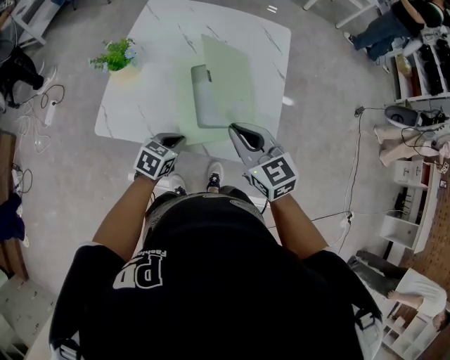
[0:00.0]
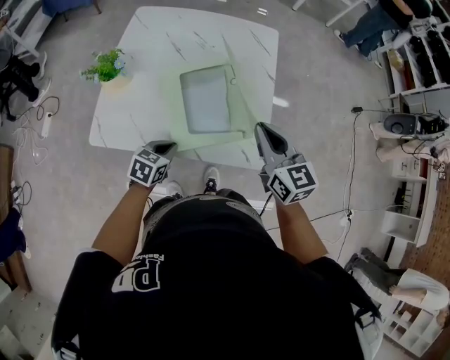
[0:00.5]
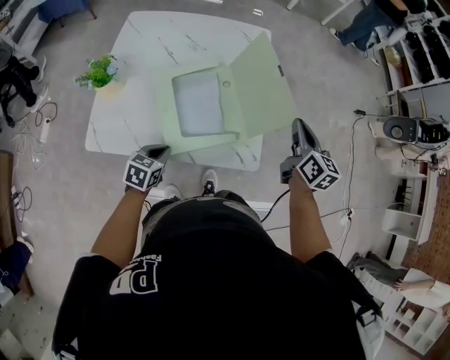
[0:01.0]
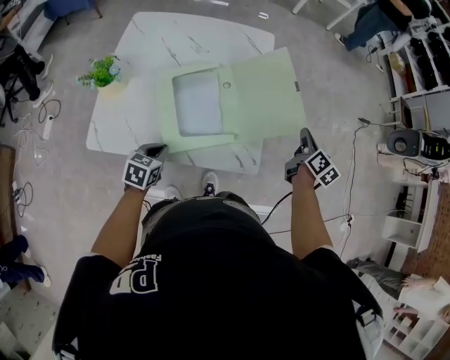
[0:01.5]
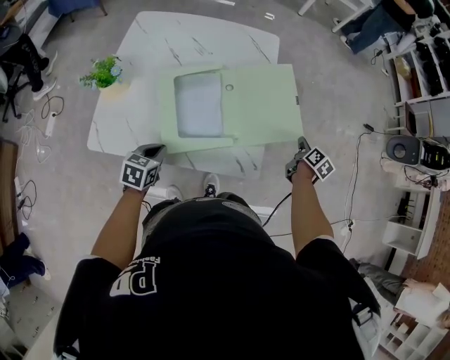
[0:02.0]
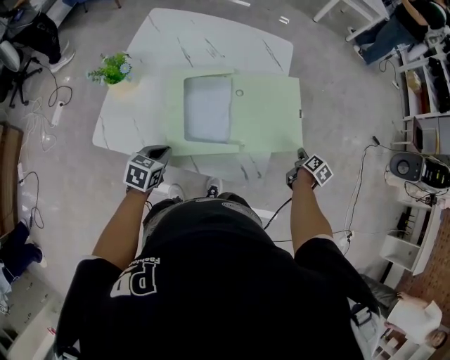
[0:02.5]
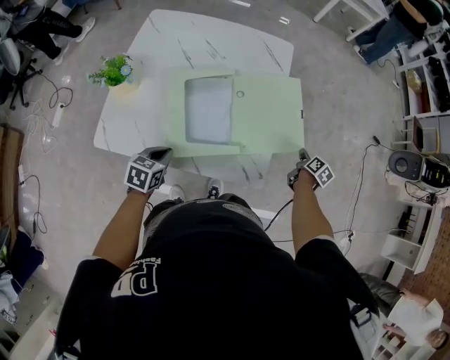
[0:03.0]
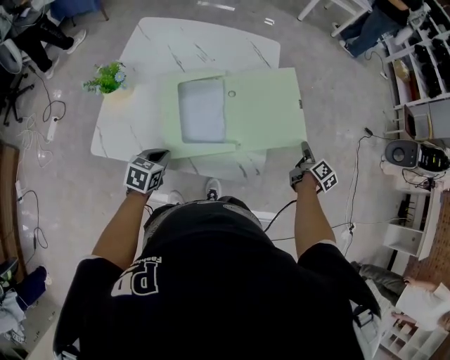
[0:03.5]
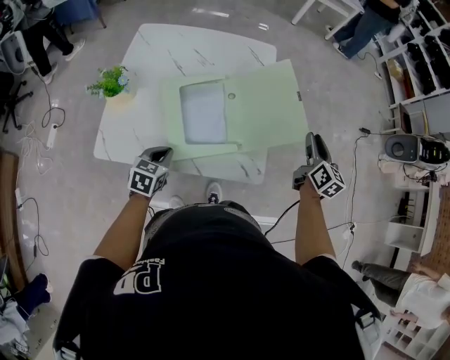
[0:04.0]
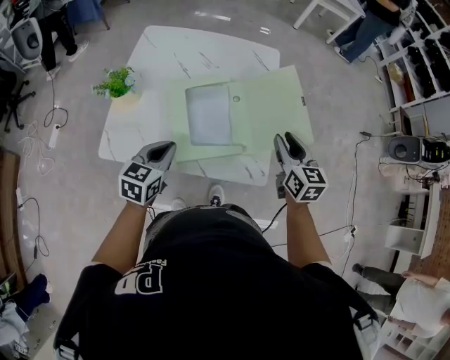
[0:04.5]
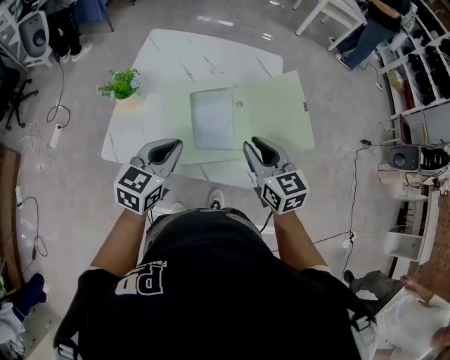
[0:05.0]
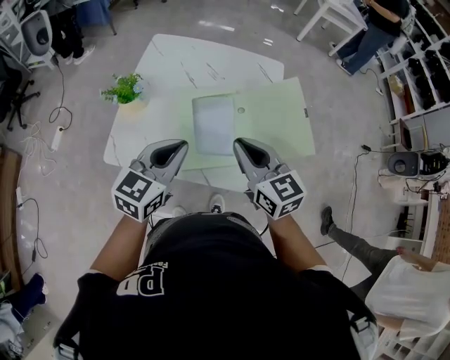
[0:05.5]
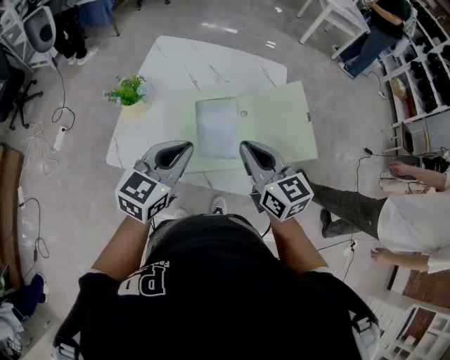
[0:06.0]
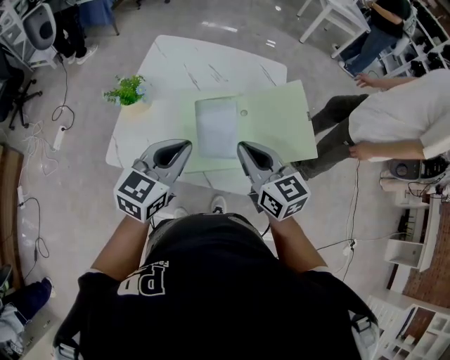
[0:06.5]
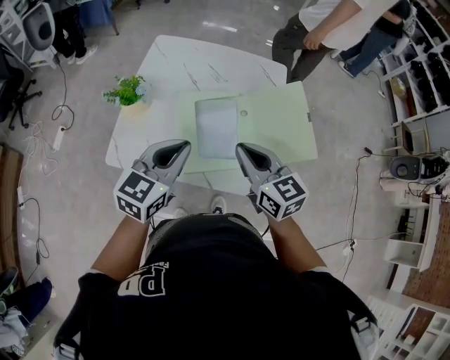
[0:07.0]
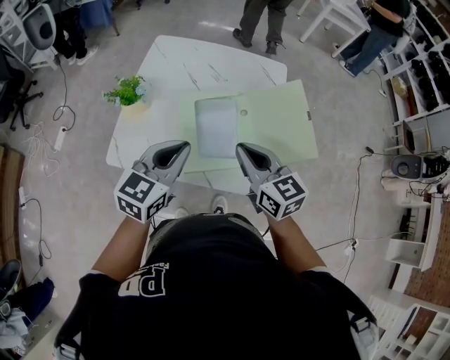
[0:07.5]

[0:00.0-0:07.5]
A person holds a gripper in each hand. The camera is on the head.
0:00.0 to 0:02.0: The right gripper is displaced to the right, downward and forward by about 40 cm, and swivels some 70 degrees.
0:02.0 to 0:04.0: The right gripper heads upward, covering approximately 15 cm, turns by roughly 30 degrees, and opens its fingers.
0:04.0 to 0:05.5: The right gripper goes roughly 30 cm to the left, swivels approximately 40 degrees, and closes; the left gripper travels upward by about 20 cm, and swivels about 30 degrees.
0:05.5 to 0:07.5: The grippers make only small movements.

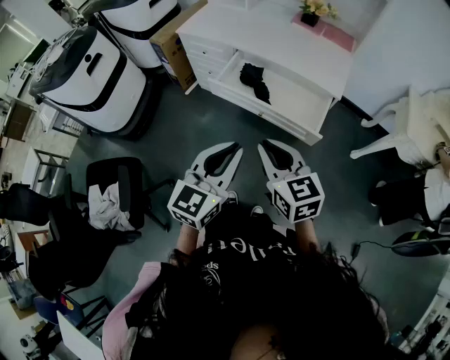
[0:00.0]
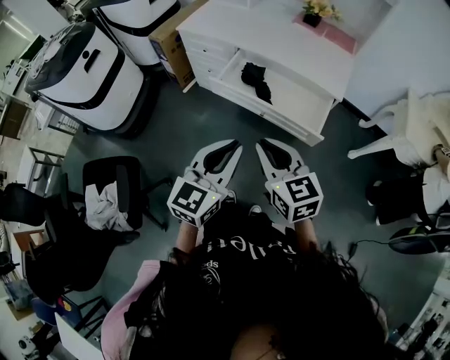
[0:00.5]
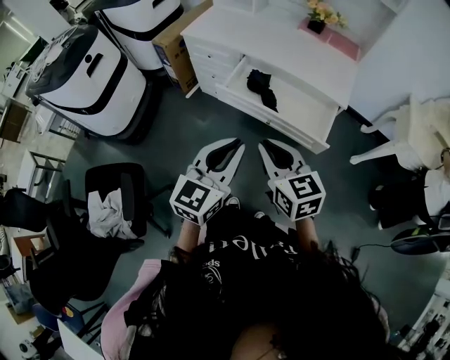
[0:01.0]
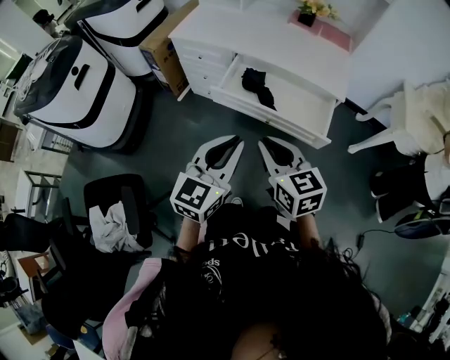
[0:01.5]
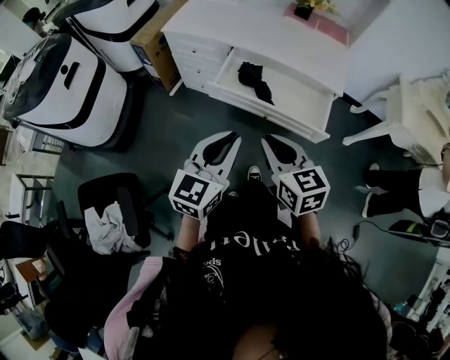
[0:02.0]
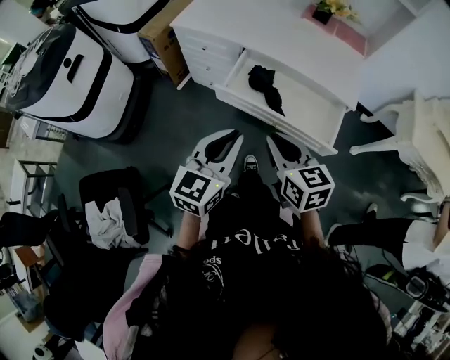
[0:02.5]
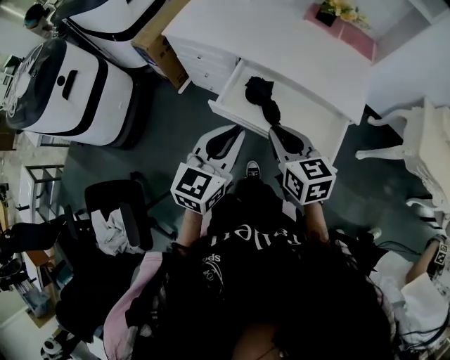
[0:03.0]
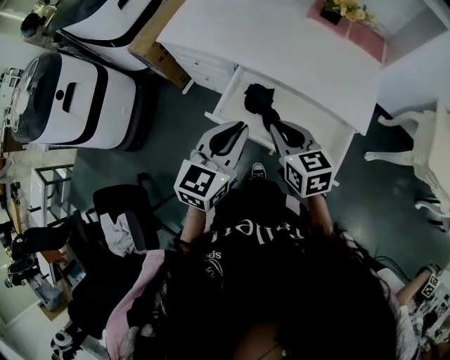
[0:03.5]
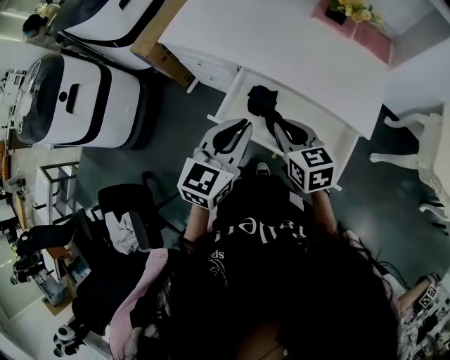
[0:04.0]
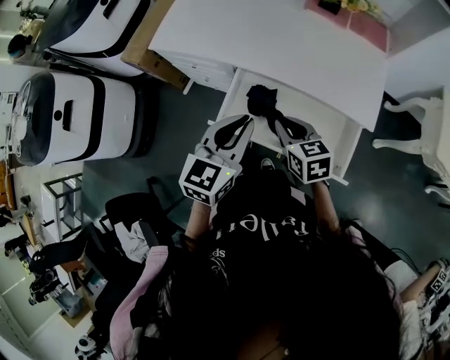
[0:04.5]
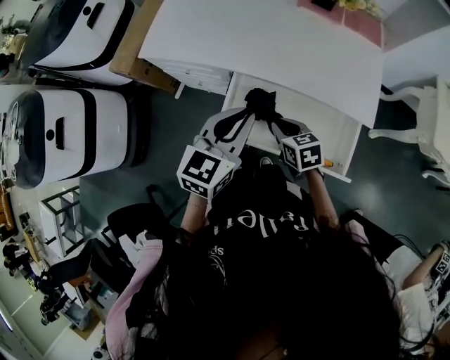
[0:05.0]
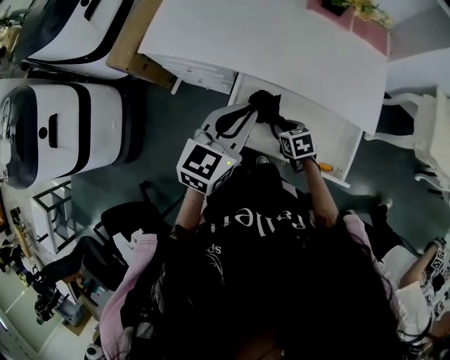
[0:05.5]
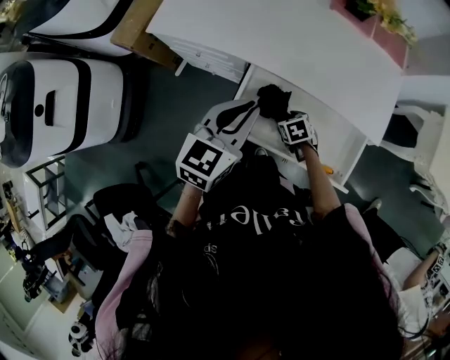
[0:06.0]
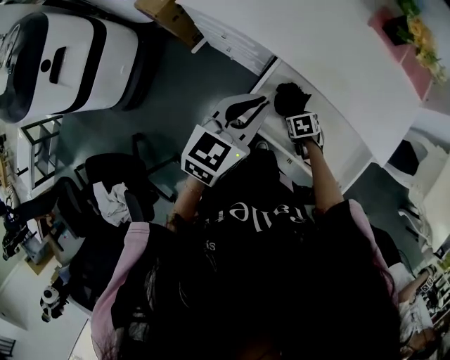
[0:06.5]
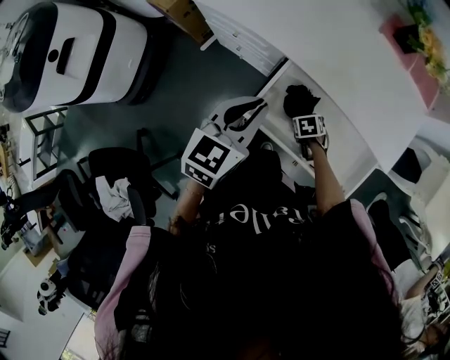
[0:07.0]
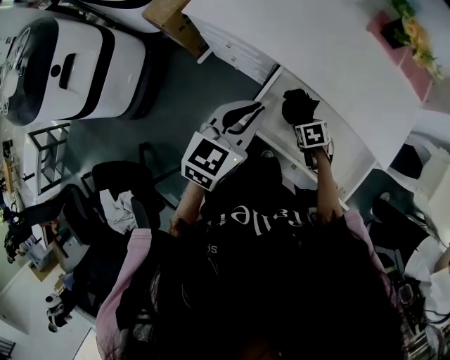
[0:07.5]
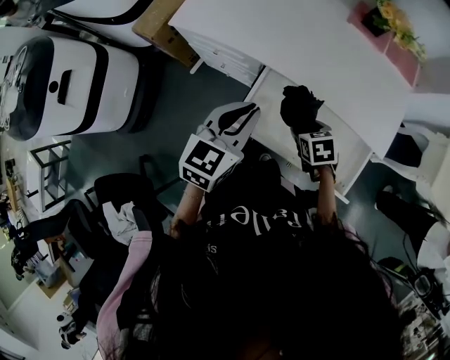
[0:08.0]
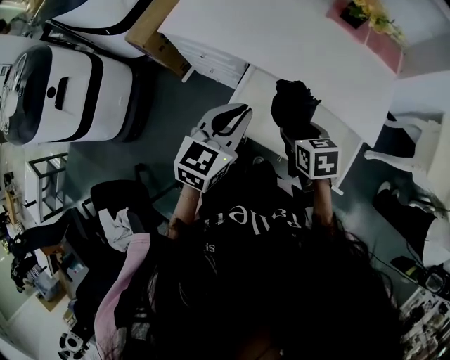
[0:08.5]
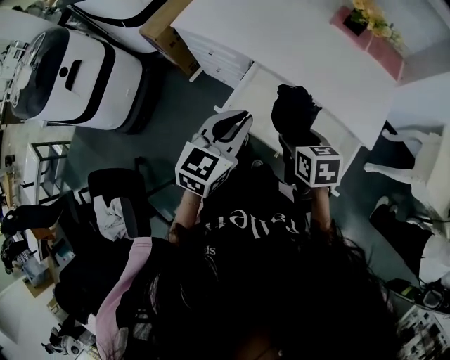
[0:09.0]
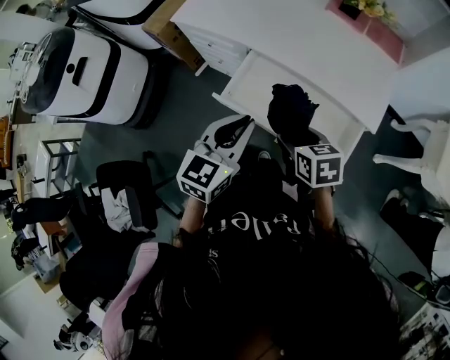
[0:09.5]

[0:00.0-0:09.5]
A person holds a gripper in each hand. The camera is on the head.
0:00.0 to 0:02.0: The two grippers go about 15 cm to the left and forward.
0:02.0 to 0:04.0: The grippers both shift forward by some 30 cm.
0:04.0 to 0:05.5: The left gripper travels forward by approximately 10 cm. The right gripper travels downward by some 20 cm, and changes its angle by about 30 degrees.
0:05.5 to 0:07.5: The right gripper is displaced downward by some 5 cm, rotates roughly 20 degrees, and opens its fingers; the left gripper changes place by some 10 cm.
0:07.5 to 0:09.5: The left gripper changes place by some 20 cm, while the right gripper travels upward by some 25 cm, and angles its fingers upward, by roughly 30 degrees.

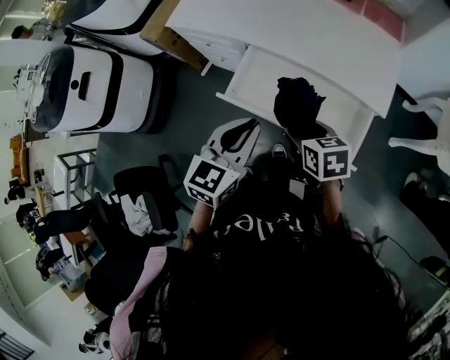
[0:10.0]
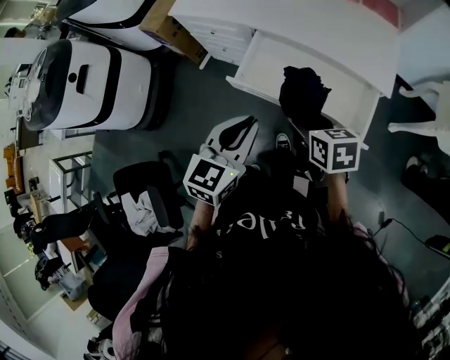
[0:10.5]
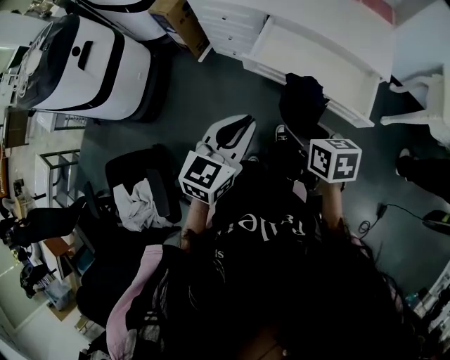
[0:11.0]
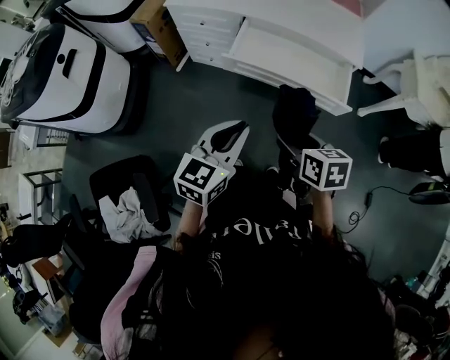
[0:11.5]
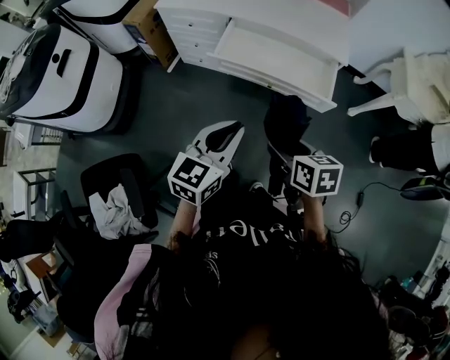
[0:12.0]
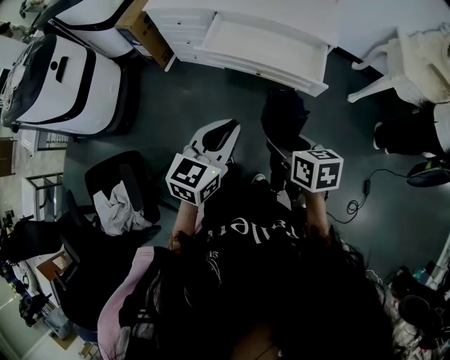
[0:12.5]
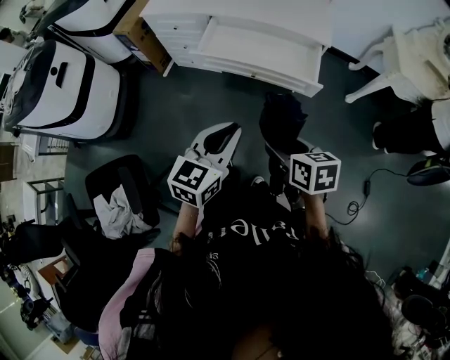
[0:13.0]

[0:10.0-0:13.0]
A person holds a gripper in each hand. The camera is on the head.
0:10.0 to 0:11.5: The grippers both shift backward and to the left by some 30 cm.
0:11.5 to 0:13.0: The grippers both shift to the right and backward by about 15 cm.

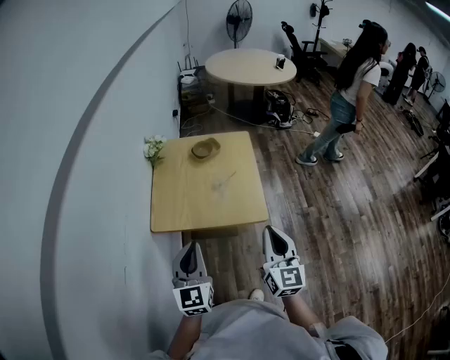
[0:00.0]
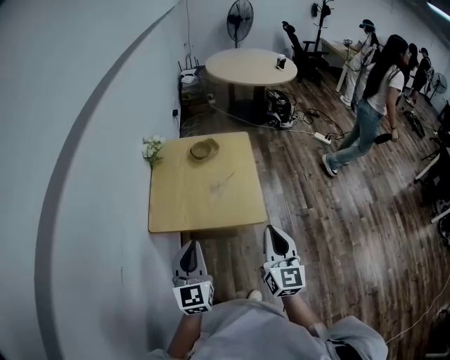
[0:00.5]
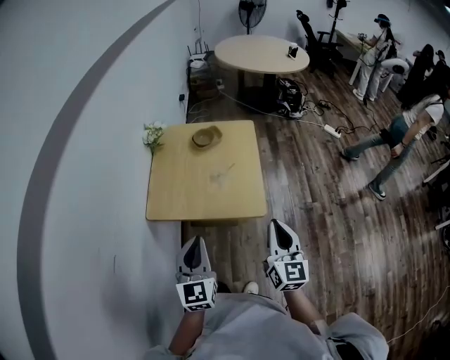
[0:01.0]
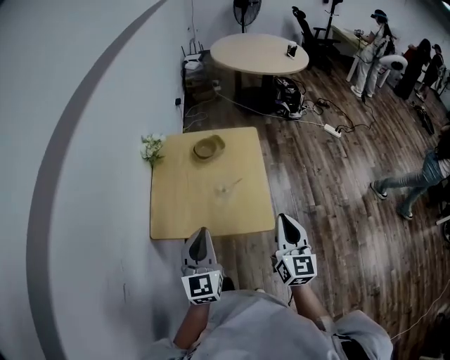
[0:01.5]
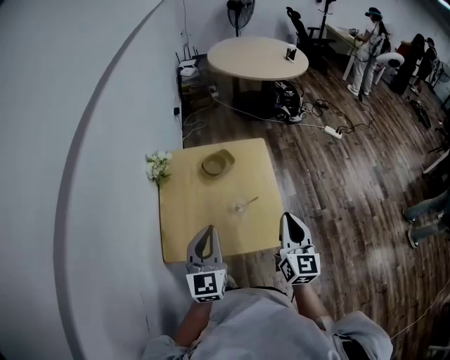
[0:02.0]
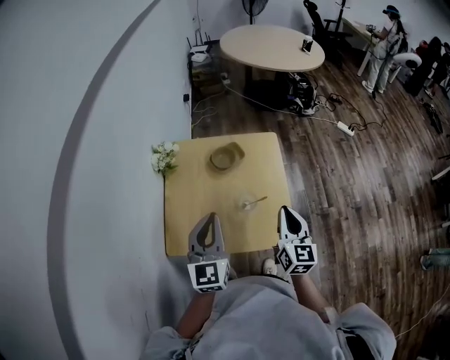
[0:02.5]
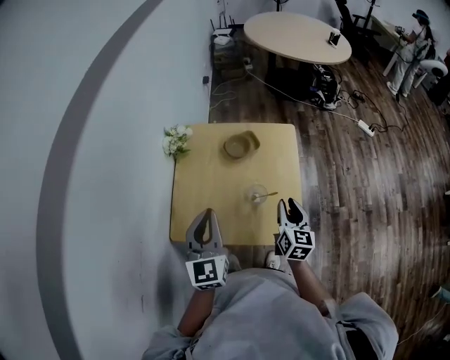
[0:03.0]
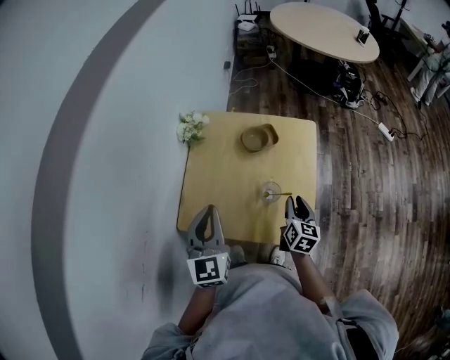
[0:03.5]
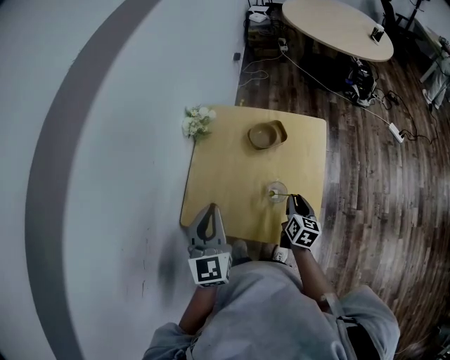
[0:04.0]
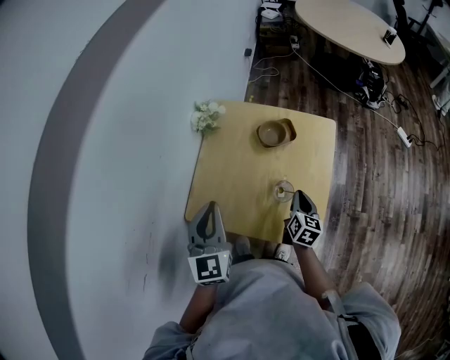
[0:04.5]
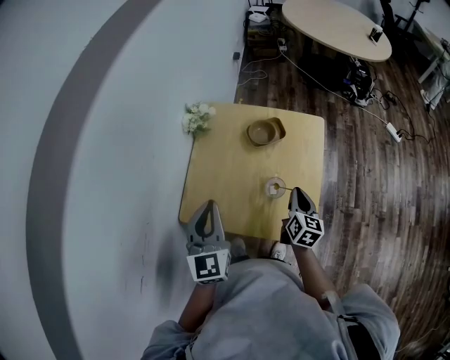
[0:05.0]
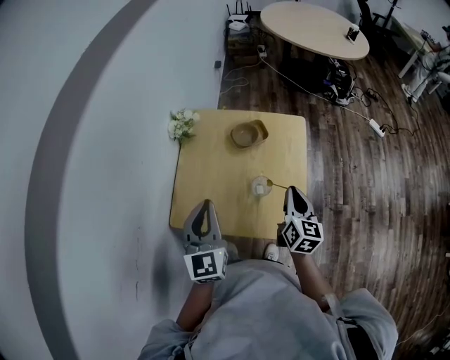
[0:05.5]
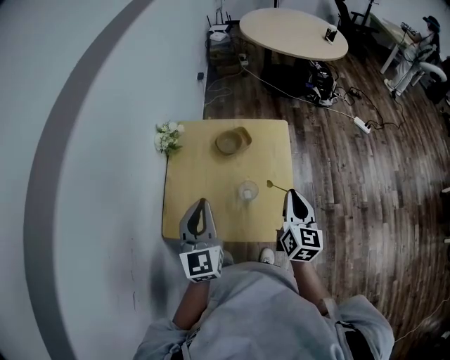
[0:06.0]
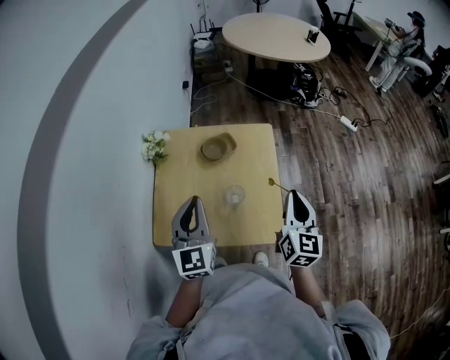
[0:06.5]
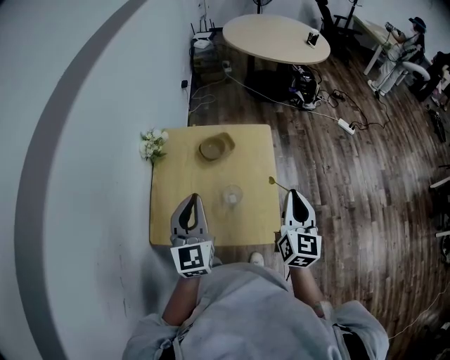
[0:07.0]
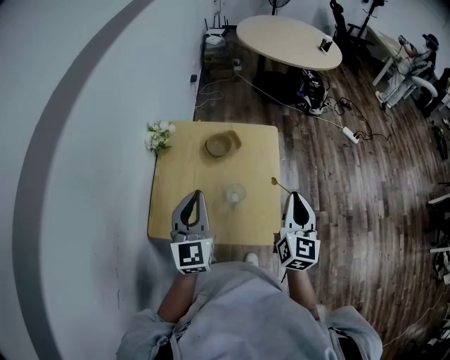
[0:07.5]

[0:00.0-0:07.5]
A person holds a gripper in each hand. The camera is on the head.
0:00.0 to 0:02.0: The two grippers go about 20 cm forward.
0:02.0 to 0:04.0: The left gripper shifts about 10 cm to the left and forward, and swivels some 20 degrees; the right gripper goes some 25 cm downward and forward, swivels about 40 degrees, and opens its fingers.
0:04.0 to 0:05.5: The right gripper moves upward, about 15 cm, and closes.
0:05.5 to 0:07.5: The left gripper shifts by roughly 5 cm, while the right gripper moves upward and to the right, some 10 cm, and swivels some 20 degrees.
